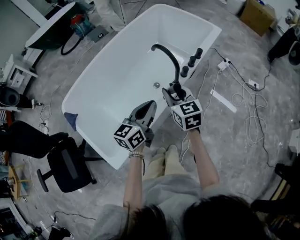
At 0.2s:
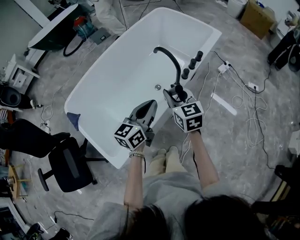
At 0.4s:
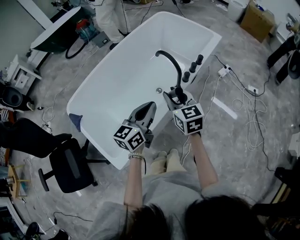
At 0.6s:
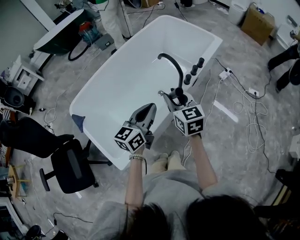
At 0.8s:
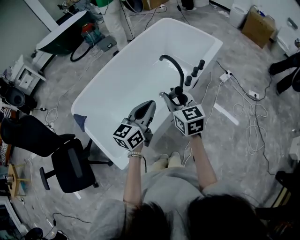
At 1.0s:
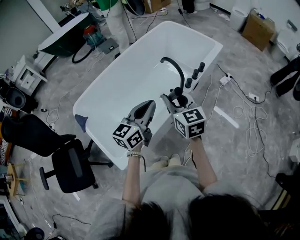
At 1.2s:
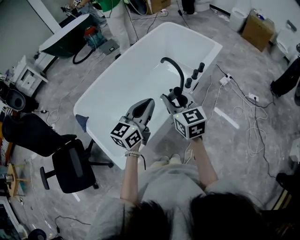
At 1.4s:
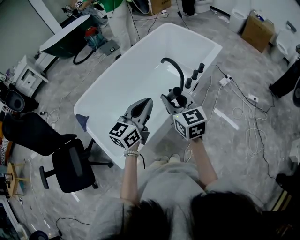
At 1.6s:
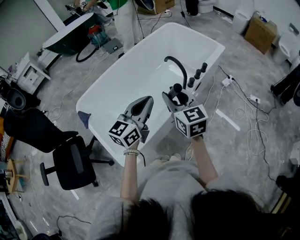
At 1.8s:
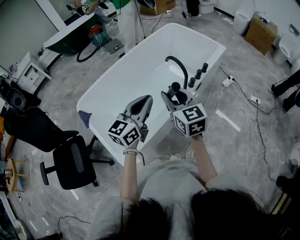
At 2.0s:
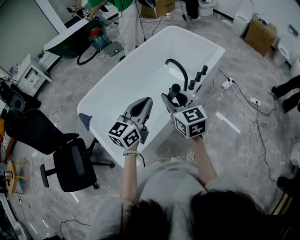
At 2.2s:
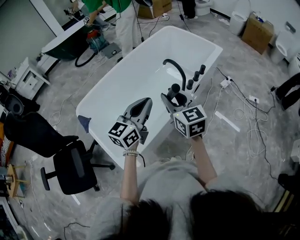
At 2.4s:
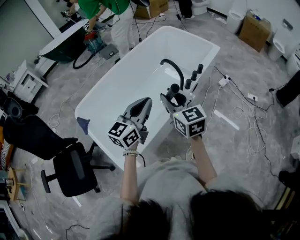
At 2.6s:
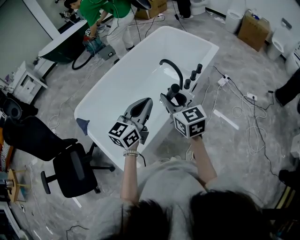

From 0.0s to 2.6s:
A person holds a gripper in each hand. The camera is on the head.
From 0.0s to 1.2s: The right gripper goes some 15 cm upward and backward. Meanwhile the left gripper moves upward, approximately 10 cm.
From 1.2s to 2.6s: The grippers make only small movements.

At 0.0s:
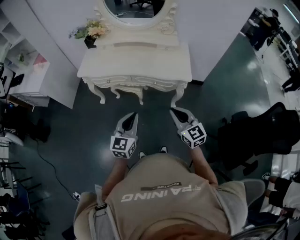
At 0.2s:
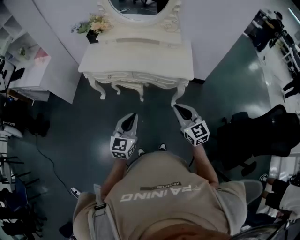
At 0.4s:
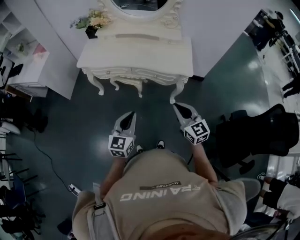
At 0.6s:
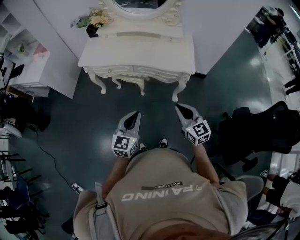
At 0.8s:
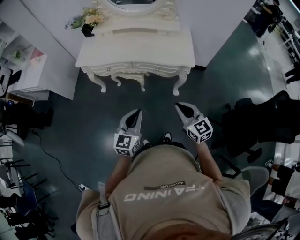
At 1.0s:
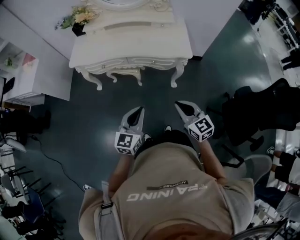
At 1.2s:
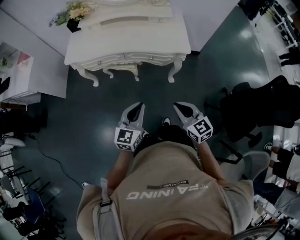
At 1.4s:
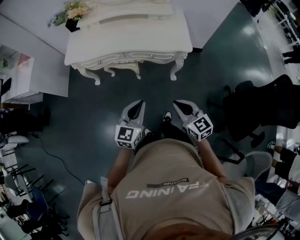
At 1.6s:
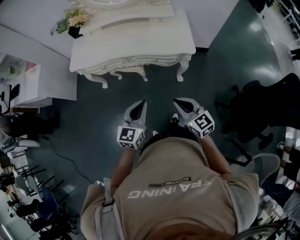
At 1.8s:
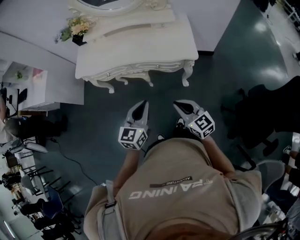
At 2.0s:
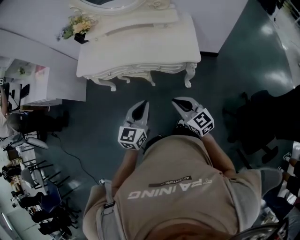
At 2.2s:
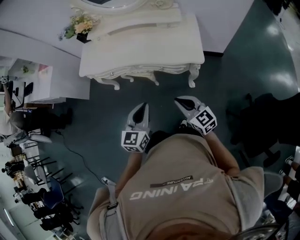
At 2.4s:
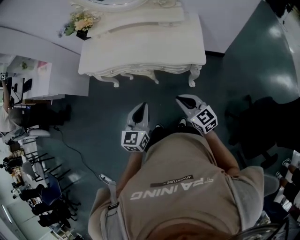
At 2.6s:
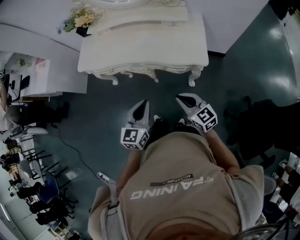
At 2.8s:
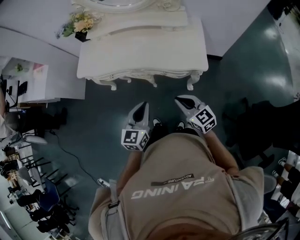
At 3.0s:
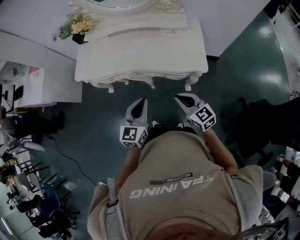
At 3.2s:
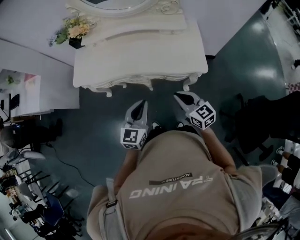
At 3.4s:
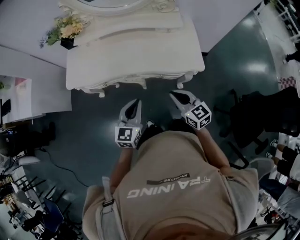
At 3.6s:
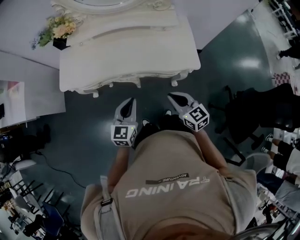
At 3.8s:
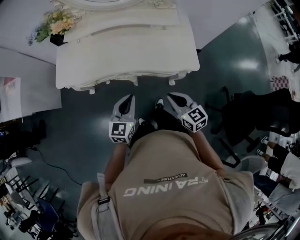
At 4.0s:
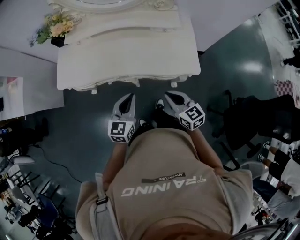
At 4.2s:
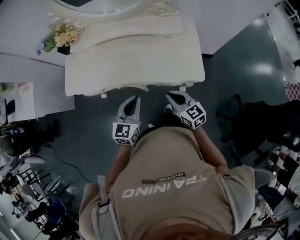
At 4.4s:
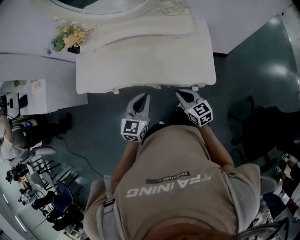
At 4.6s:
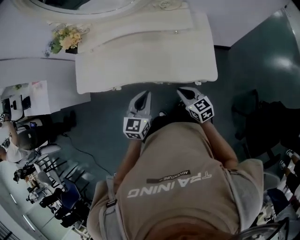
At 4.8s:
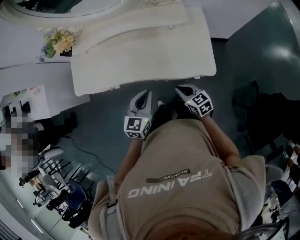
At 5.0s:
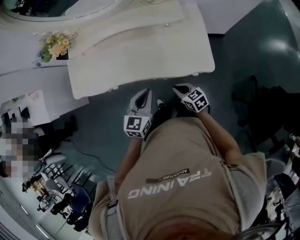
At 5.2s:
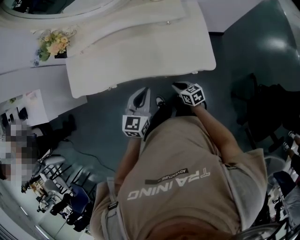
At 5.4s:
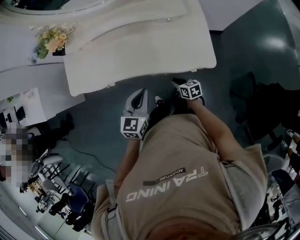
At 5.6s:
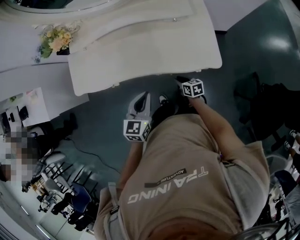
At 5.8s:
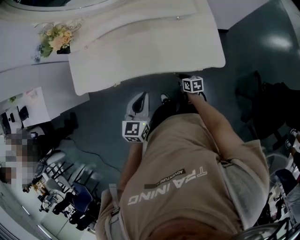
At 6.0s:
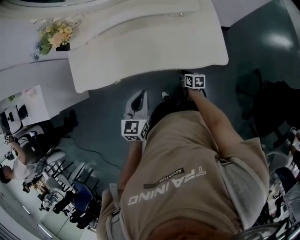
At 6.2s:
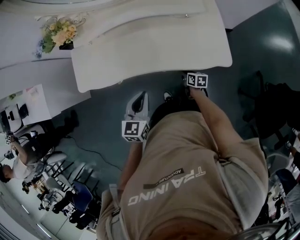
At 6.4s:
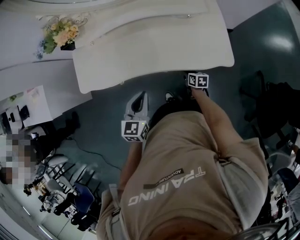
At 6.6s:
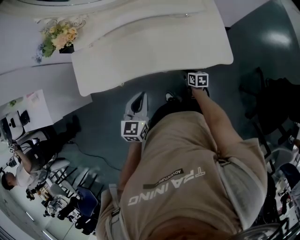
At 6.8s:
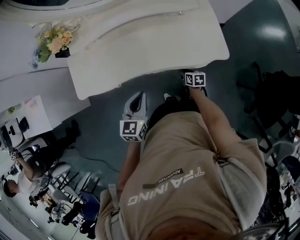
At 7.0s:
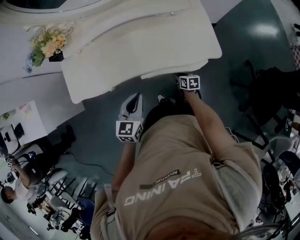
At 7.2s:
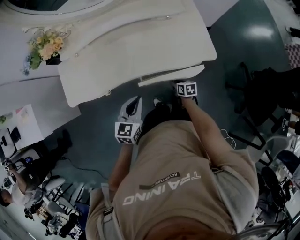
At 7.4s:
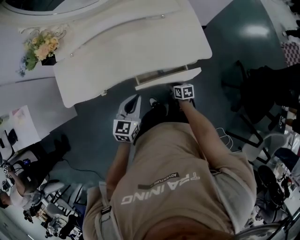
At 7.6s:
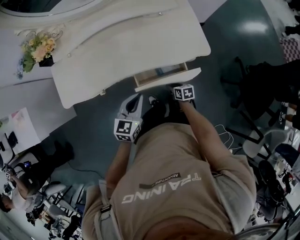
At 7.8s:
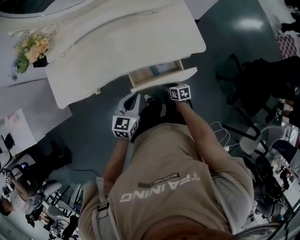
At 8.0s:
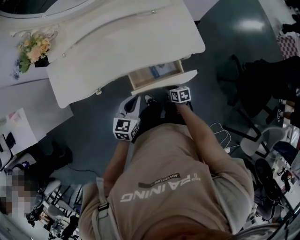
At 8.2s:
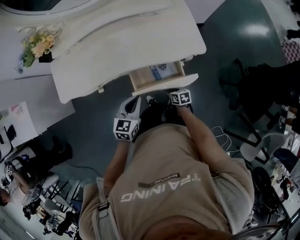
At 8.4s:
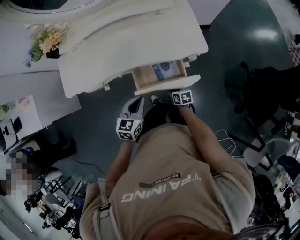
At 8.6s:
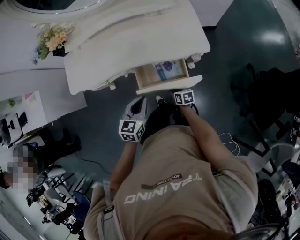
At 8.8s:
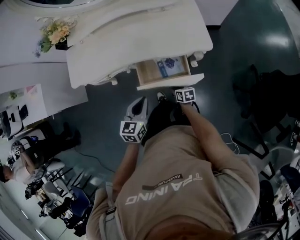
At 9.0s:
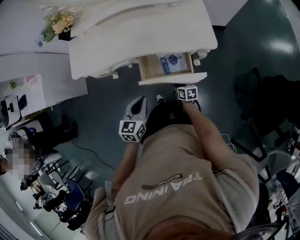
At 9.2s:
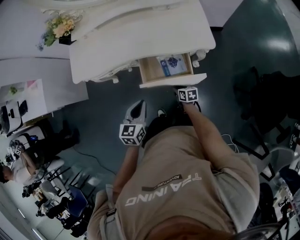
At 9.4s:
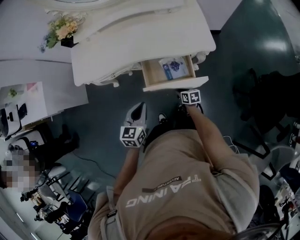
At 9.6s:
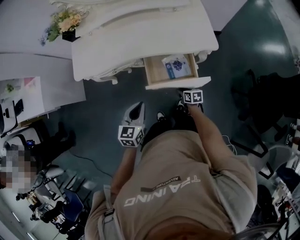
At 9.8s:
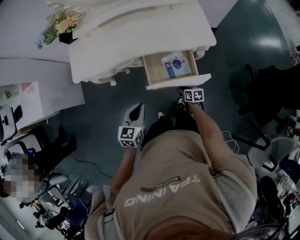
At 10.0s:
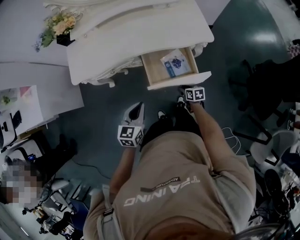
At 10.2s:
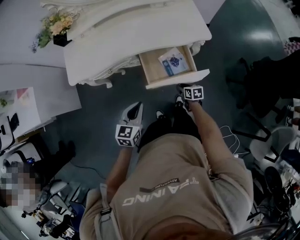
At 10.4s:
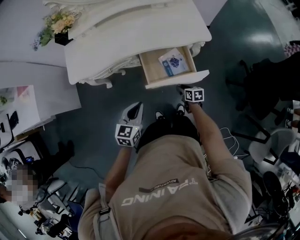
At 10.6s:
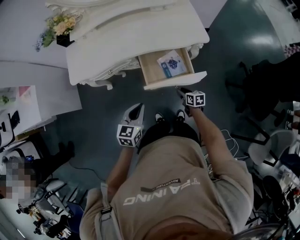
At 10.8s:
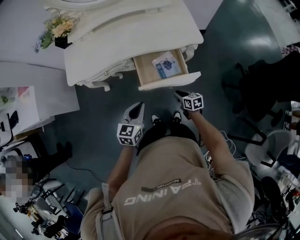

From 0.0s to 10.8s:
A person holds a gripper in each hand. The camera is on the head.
From 0.0s to 1.6s: The left gripper shifts roughly 5 cm forward. The right gripper is displaced downward by approximately 5 cm.
From 1.6s to 3.0s: Both grippers travel together forward, about 20 cm.
From 3.0s to 4.6s: The right gripper heads forward and downward, covering some 20 cm. Meanwhile the left gripper heads forward, covering some 20 cm.
From 4.6s to 6.2s: The right gripper is displaced downward by roughly 20 cm, turns by about 40 degrees, and opens up. Meanwhile the left gripper shifts roughly 10 cm to the left.
From 6.2s to 7.8s: The left gripper heads downward, covering about 5 cm, while the right gripper shifts about 15 cm backward.
From 7.8s to 9.2s: The right gripper moves backward, about 10 cm. Meanwhile the left gripper is displaced backward by some 15 cm.
From 9.2s to 10.8s: The right gripper moves backward and upward, approximately 10 cm. The left gripper travels backward by about 5 cm.

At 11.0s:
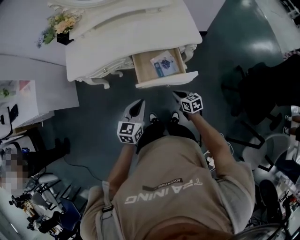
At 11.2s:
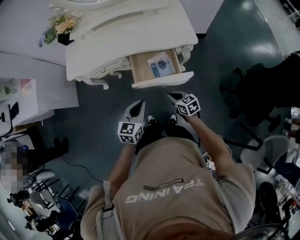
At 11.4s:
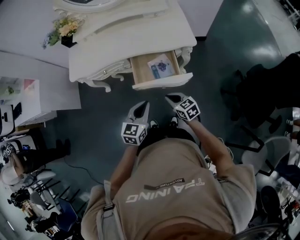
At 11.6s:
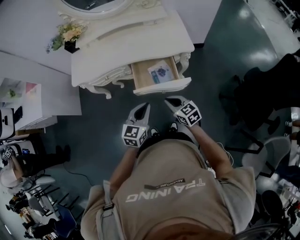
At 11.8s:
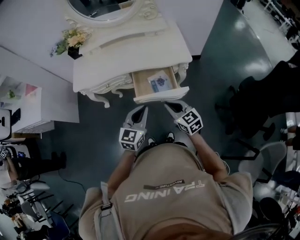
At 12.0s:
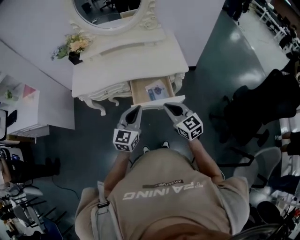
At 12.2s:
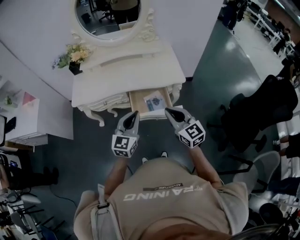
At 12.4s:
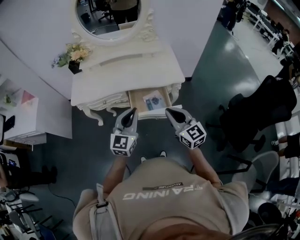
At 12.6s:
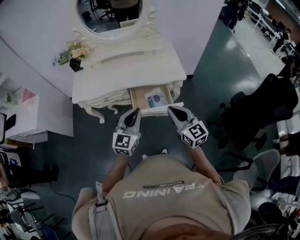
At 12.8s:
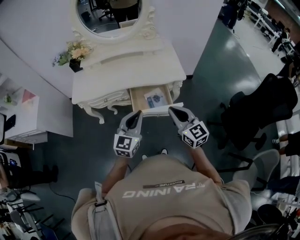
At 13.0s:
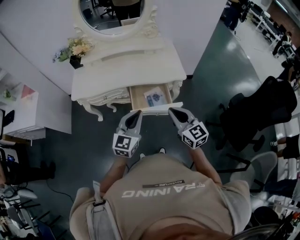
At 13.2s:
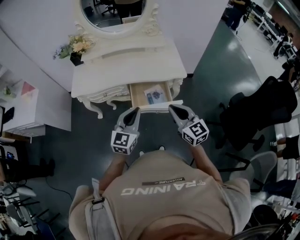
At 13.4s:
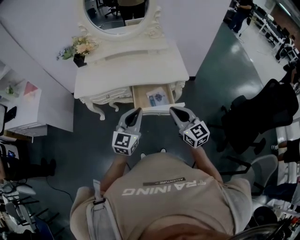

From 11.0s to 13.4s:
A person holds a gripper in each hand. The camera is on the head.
From 11.0s to 12.2s: The right gripper is displaced upward by roughly 35 cm, and rotates approximately 40 degrees. The left gripper is displaced upward by roughly 15 cm, and rotates approximately 20 degrees.
From 12.2s to 13.4s: The grippers stay close to where they were, moving slightly.

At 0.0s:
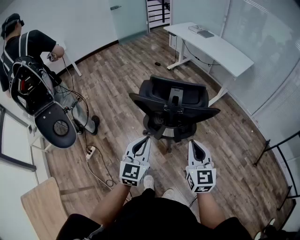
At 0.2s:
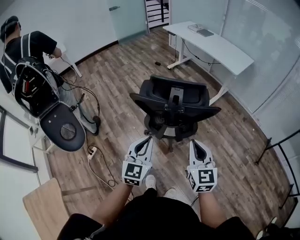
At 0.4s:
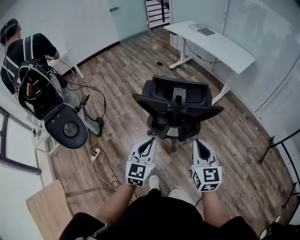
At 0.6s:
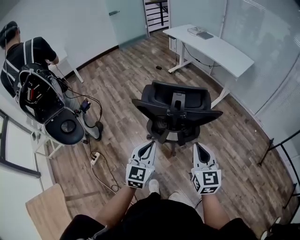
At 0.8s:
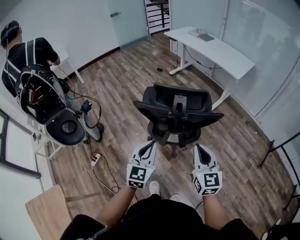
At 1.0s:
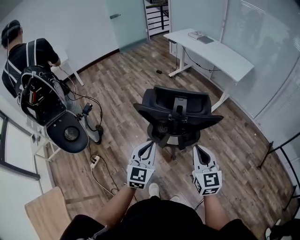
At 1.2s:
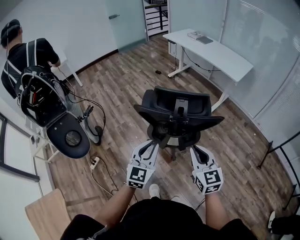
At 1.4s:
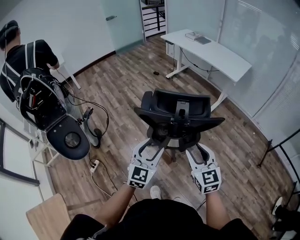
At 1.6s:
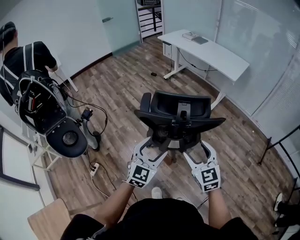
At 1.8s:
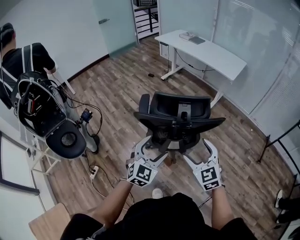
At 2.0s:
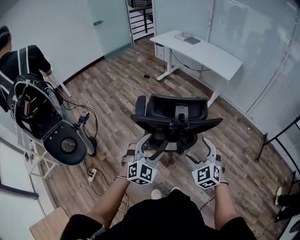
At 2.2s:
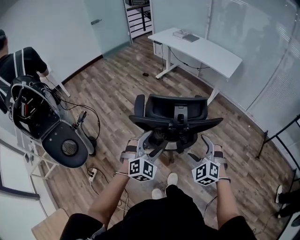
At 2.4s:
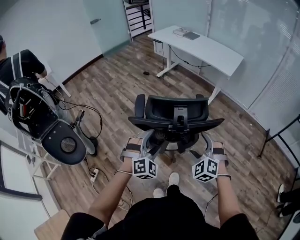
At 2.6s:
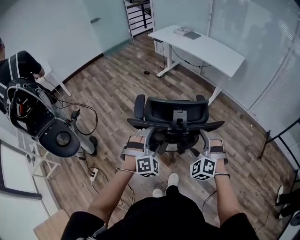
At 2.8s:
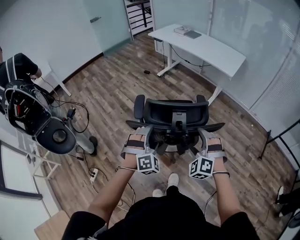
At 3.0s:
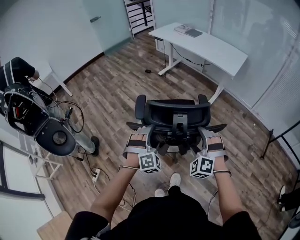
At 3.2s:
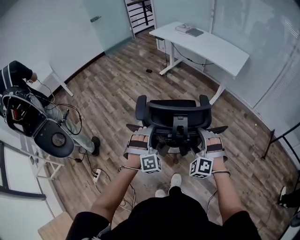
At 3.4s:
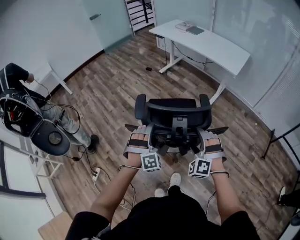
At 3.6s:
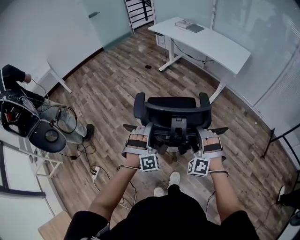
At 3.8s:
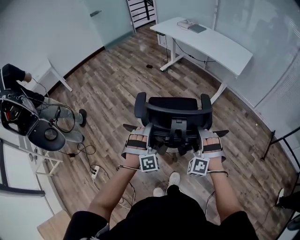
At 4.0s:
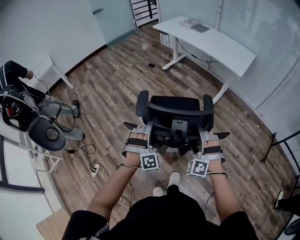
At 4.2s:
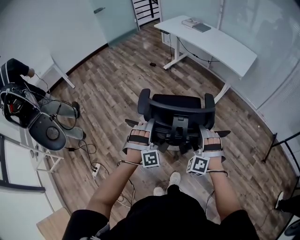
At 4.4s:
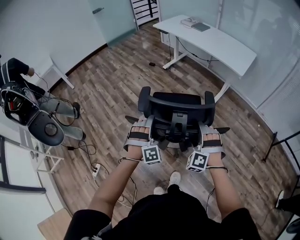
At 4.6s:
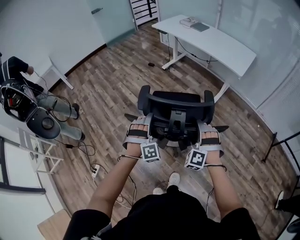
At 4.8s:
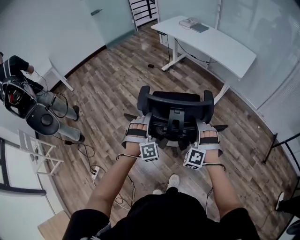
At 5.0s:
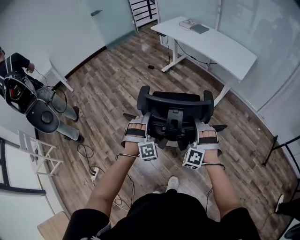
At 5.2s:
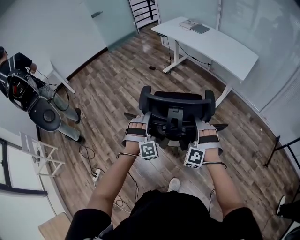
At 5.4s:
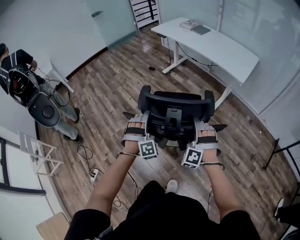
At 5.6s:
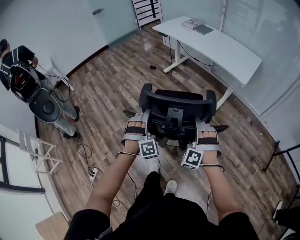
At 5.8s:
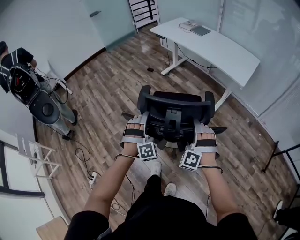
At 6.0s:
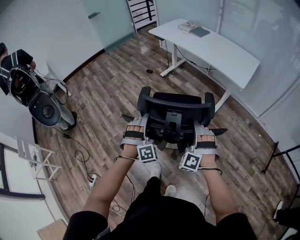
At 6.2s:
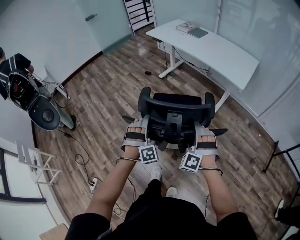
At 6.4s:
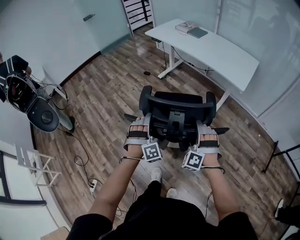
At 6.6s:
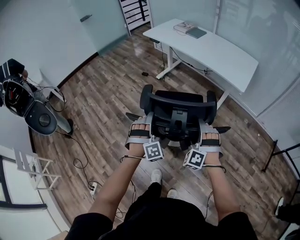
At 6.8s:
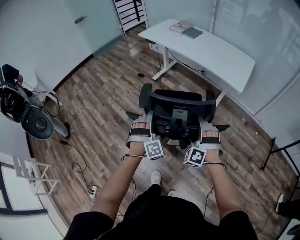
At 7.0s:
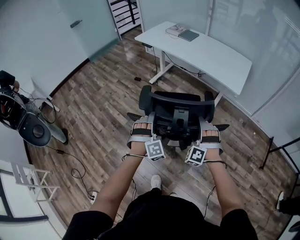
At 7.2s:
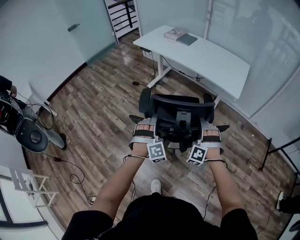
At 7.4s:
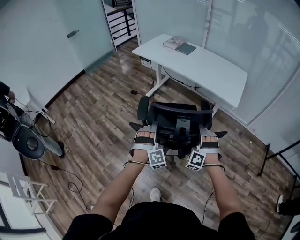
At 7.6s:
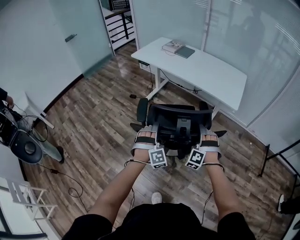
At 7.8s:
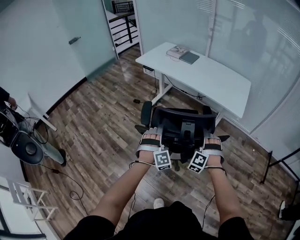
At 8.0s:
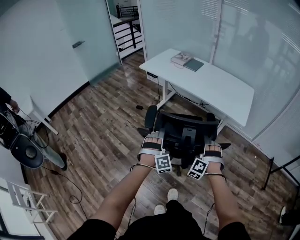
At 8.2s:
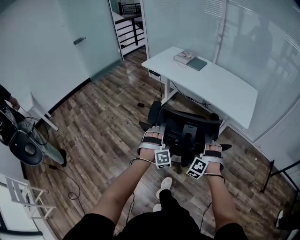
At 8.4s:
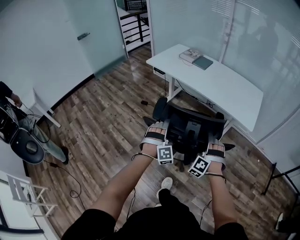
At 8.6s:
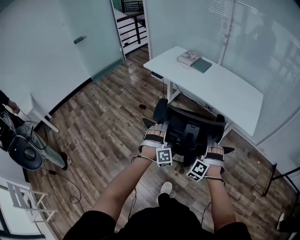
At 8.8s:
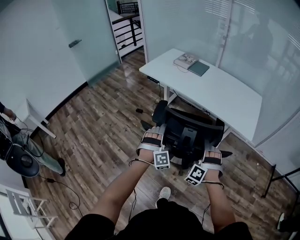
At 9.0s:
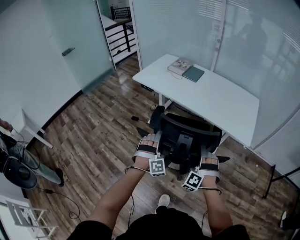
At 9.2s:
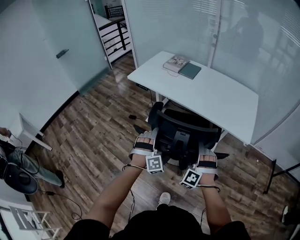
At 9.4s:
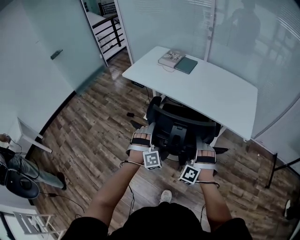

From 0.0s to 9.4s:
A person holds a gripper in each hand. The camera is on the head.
From 0.0s to 1.6s: The grippers both shift forward by roughly 5 cm. The left gripper opens. The right gripper opens its fingers.
From 1.6s to 3.2s: The two grippers go about 15 cm forward and downward. The left gripper rolls clockwise, seen from behind, by some 60 degrees. Meanwhile the right gripper rolls counterclockwise, seen from behind, by some 60 degrees.
From 3.2s to 4.8s: The two grippers go some 10 cm forward and downward.
From 4.8s to 6.2s: Both grippers travel together forward, approximately 15 cm.
From 6.2s to 7.8s: The grippers both shift forward by roughly 25 cm.
From 7.8s to 9.4s: The two grippers go approximately 20 cm forward.
